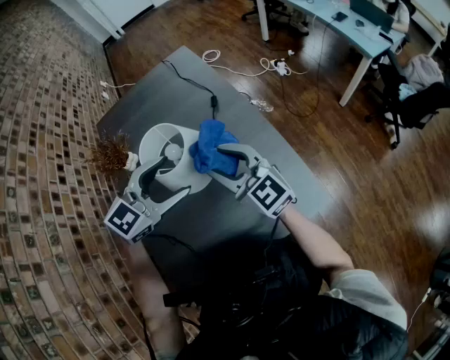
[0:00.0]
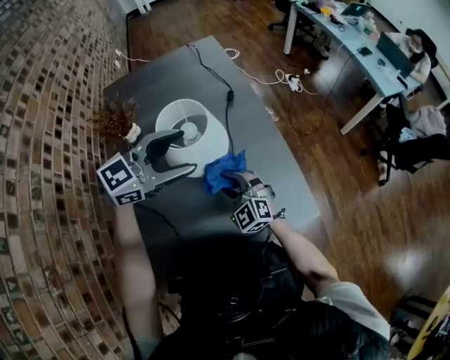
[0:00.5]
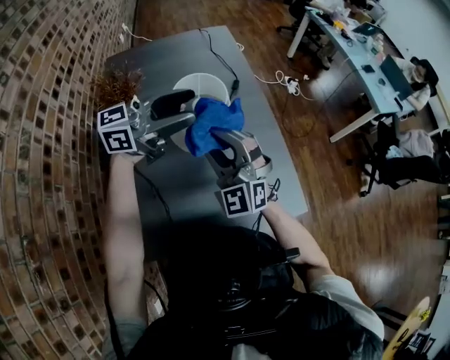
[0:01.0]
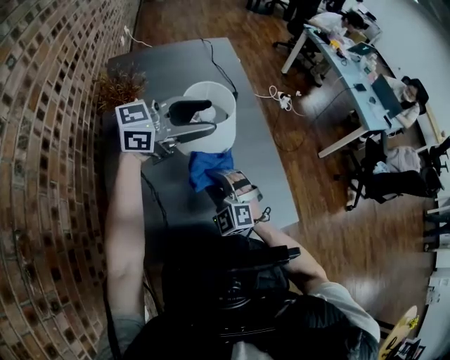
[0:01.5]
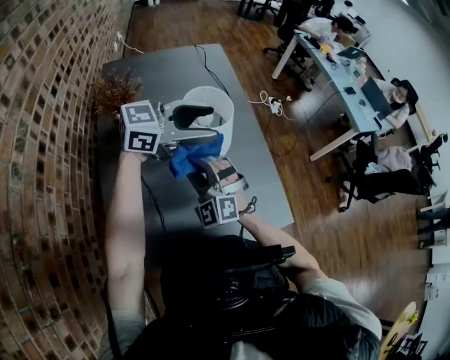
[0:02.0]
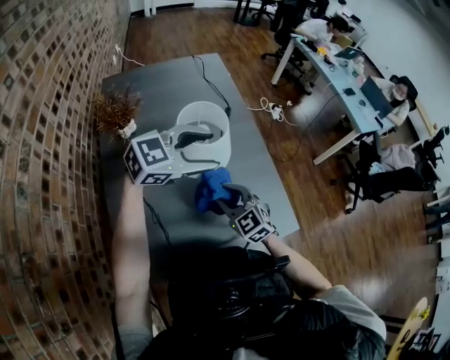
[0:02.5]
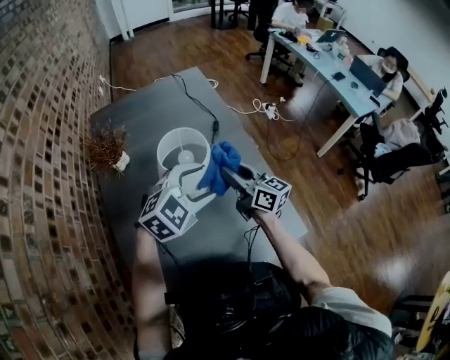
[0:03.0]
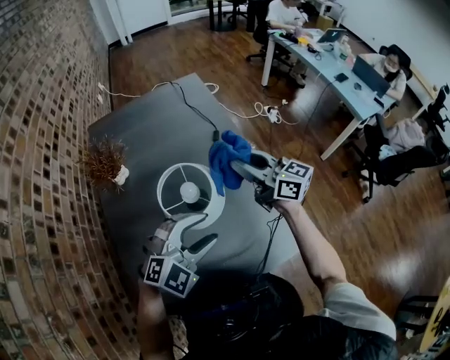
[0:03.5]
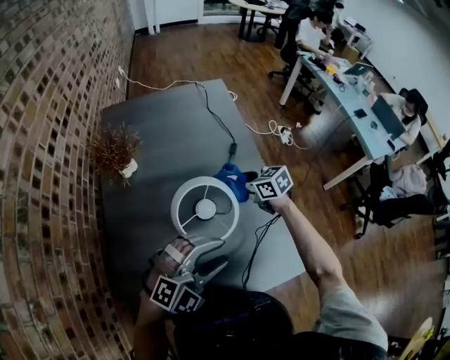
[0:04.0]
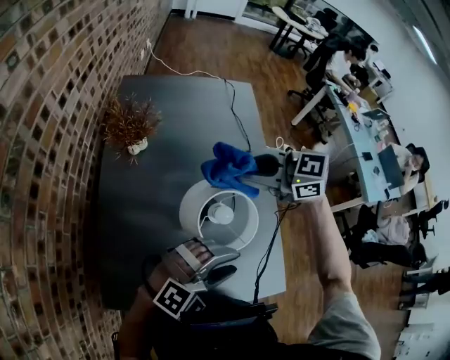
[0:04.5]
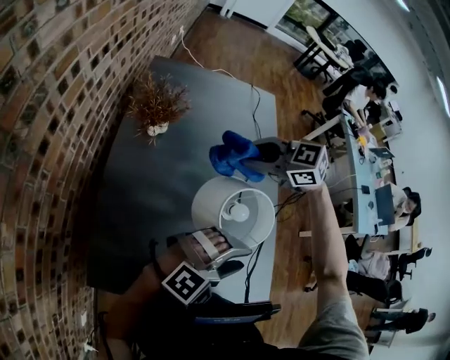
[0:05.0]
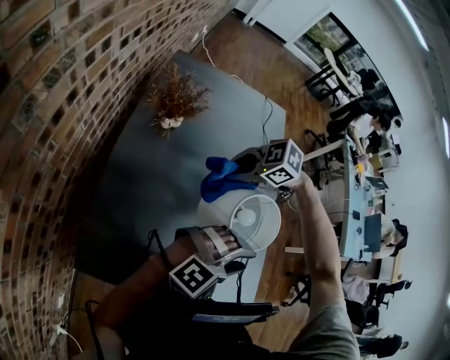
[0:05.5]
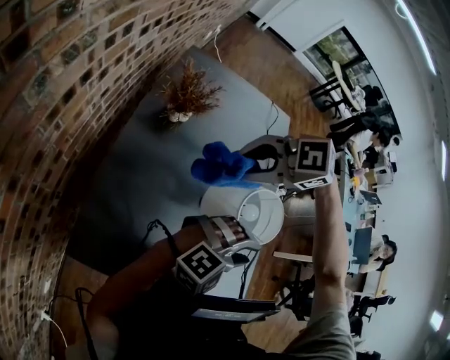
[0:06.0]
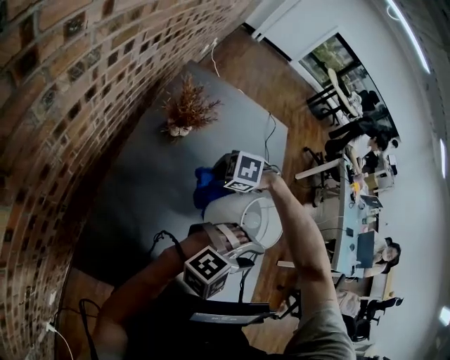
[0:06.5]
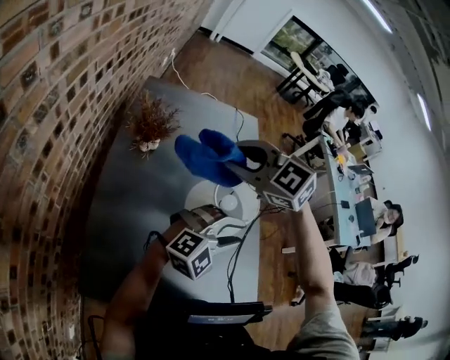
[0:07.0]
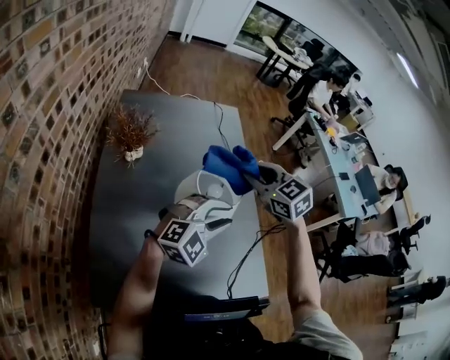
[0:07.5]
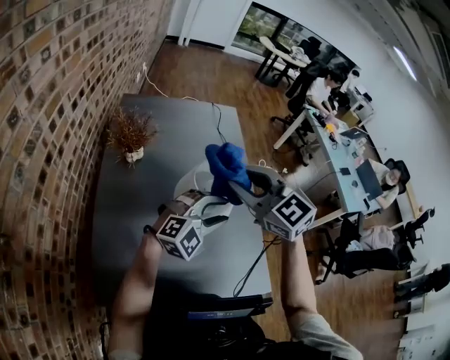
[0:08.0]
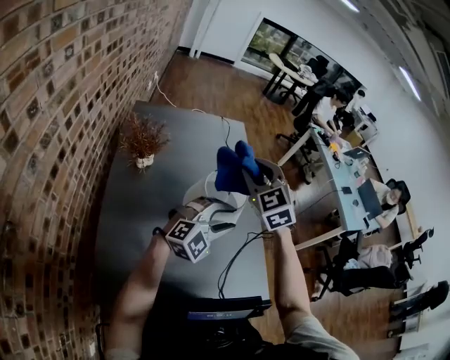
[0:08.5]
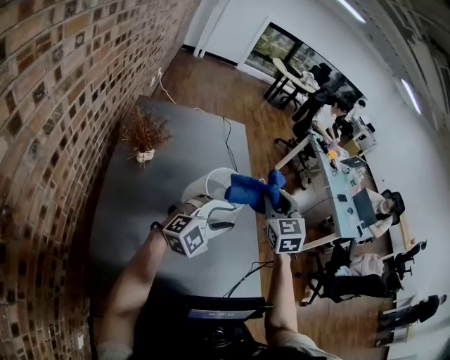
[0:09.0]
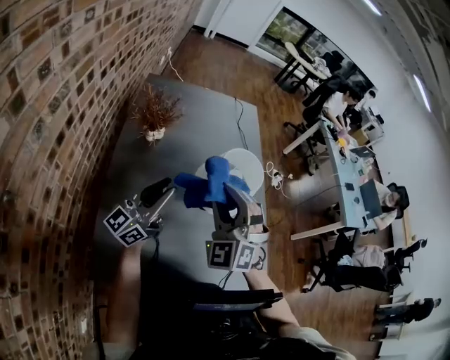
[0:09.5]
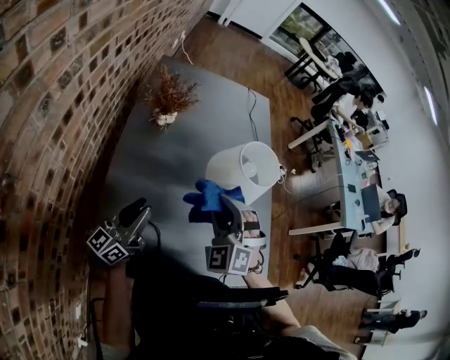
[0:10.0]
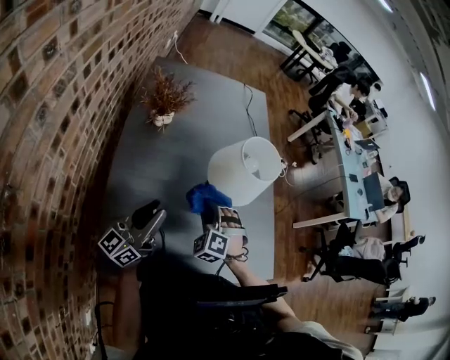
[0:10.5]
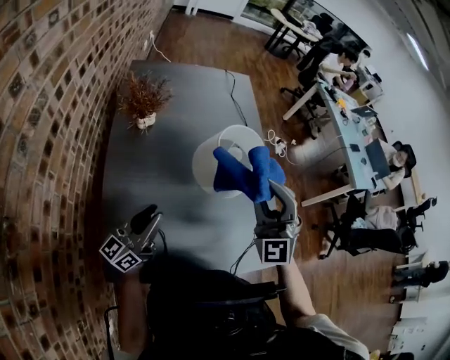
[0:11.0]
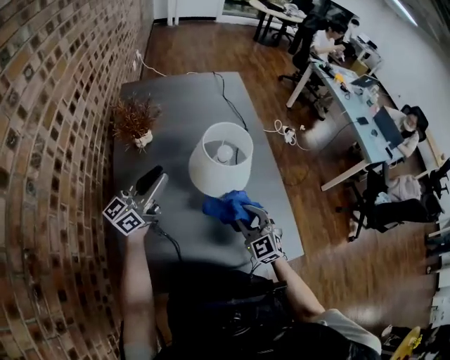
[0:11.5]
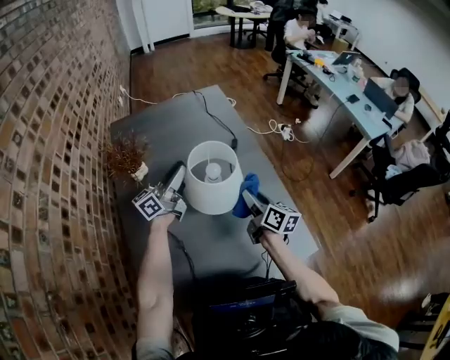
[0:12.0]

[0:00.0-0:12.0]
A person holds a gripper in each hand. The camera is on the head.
0:00.0 to 0:02.0: The right gripper swings up and down, about 15 cm each way, with 3 reversals, and rolls counterclockwise, seen from behind, by about 50 degrees. Meanwhile the left gripper travels upward by roughly 5 cm, and changes its angle by approximately 30 degrees.
0:02.0 to 0:04.0: The left gripper shifts by about 15 cm, and swivels roughly 60 degrees. Meanwhile the right gripper moves up and down over approximately 15 cm, changing direction 2 times, and rolls clockwise, seen from behind, by about 70 degrees.
0:04.0 to 0:06.0: The right gripper goes up and down, some 20 cm each way, reversing 2 times, and changes its angle by some 80 degrees.
0:06.0 to 0:08.0: The right gripper moves up and down over roughly 25 cm, changing direction 3 times, and tips its fingers upward by about 30 degrees. Meanwhile the left gripper moves about 5 cm.
0:08.0 to 0:10.0: The left gripper travels to the left and backward by some 30 cm, and points its fingers about 40 degrees further upward. Meanwhile the right gripper travels downward, backward and to the left by about 20 cm, and changes its angle by roughly 50 degrees.
0:10.0 to 0:12.0: The right gripper moves up and down over approximately 25 cm, changing direction 3 times, and rotates around the line of its fingers by about 110 degrees, clockwise from behind. The left gripper is displaced forward and to the right by some 30 cm, and rotates about 30 degrees.

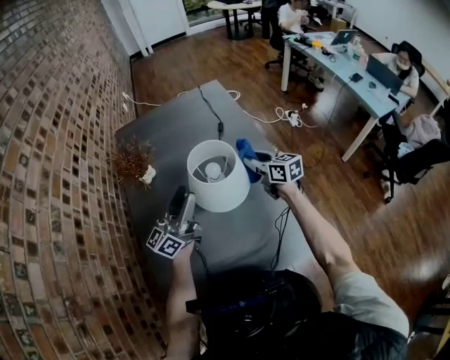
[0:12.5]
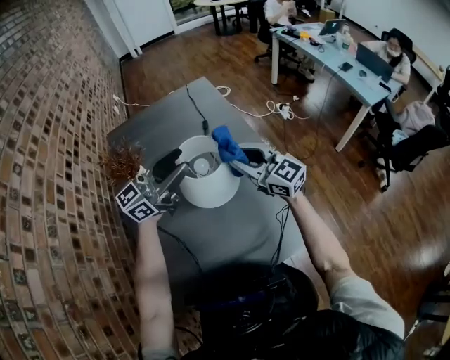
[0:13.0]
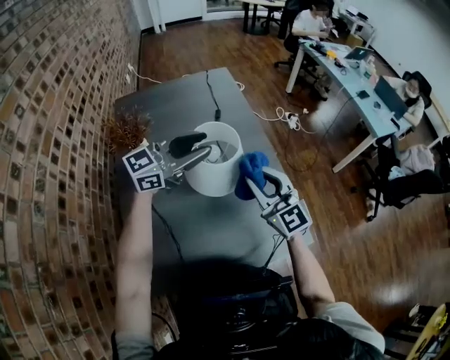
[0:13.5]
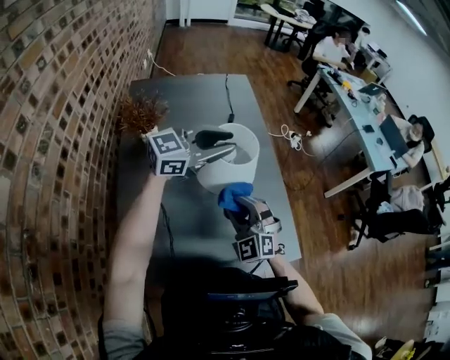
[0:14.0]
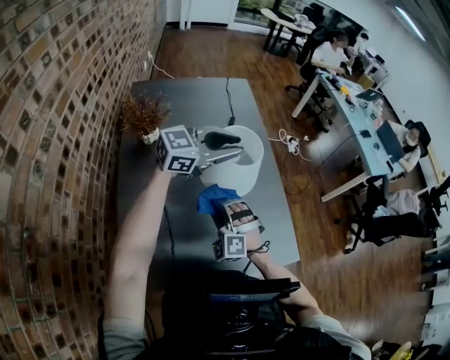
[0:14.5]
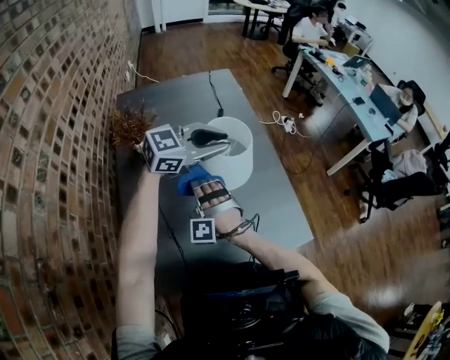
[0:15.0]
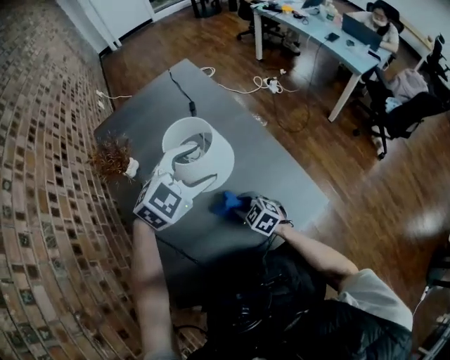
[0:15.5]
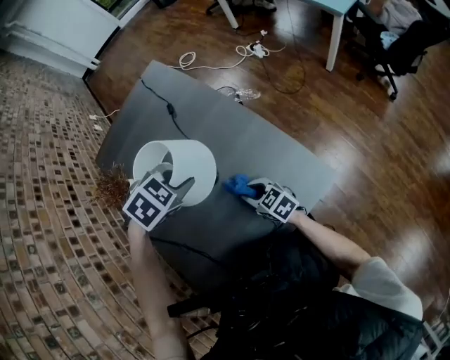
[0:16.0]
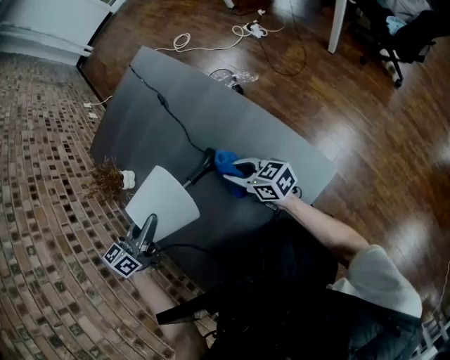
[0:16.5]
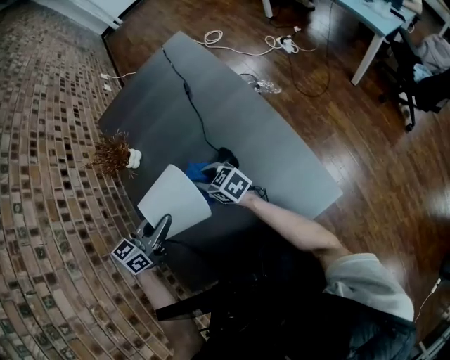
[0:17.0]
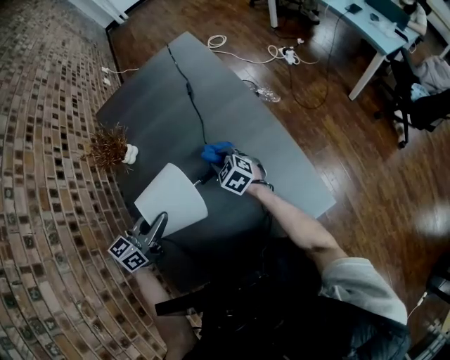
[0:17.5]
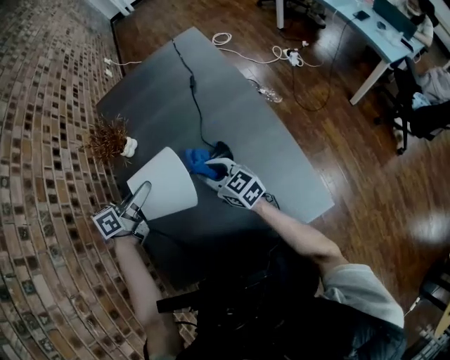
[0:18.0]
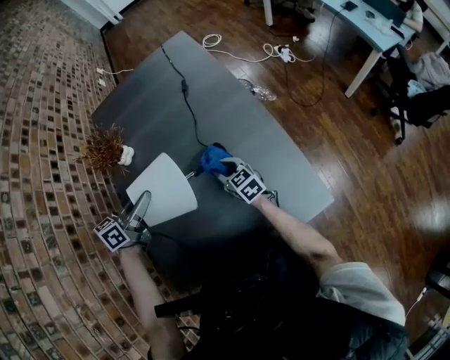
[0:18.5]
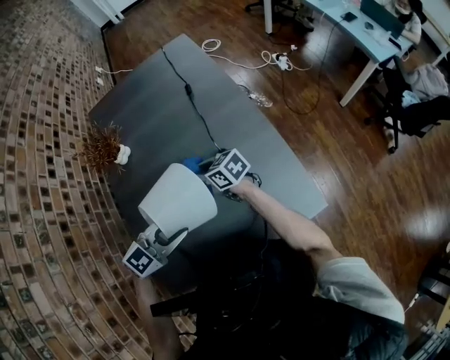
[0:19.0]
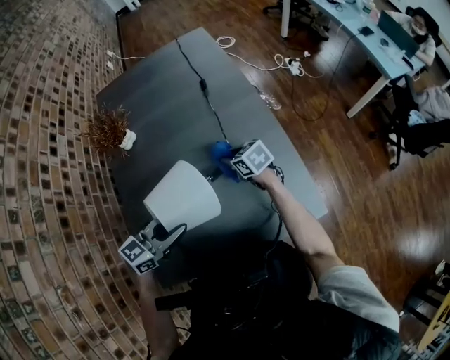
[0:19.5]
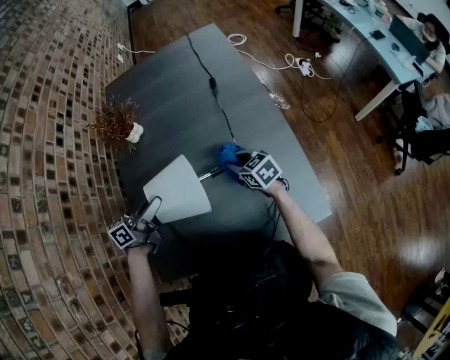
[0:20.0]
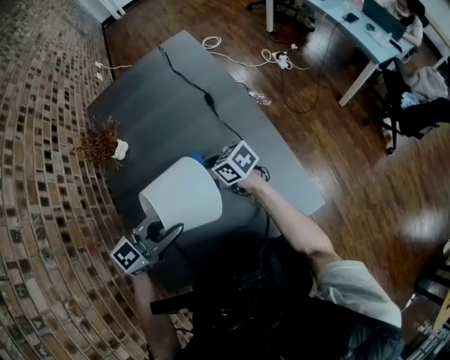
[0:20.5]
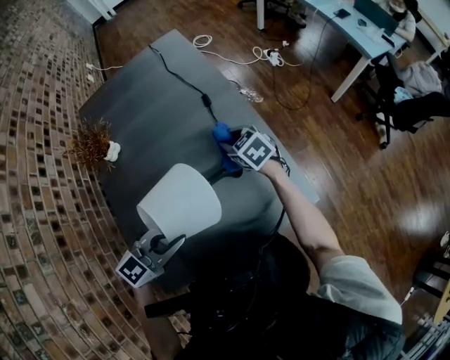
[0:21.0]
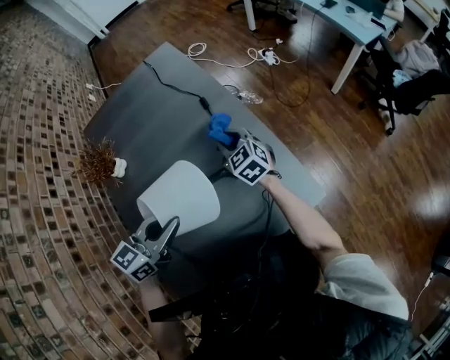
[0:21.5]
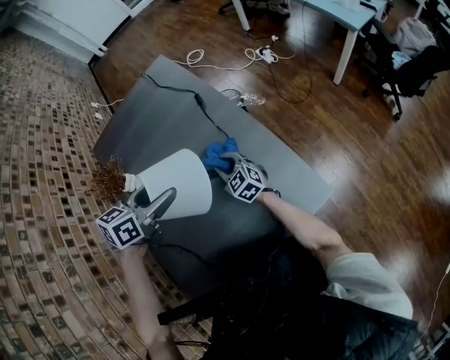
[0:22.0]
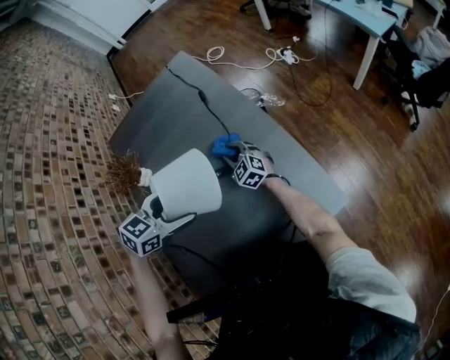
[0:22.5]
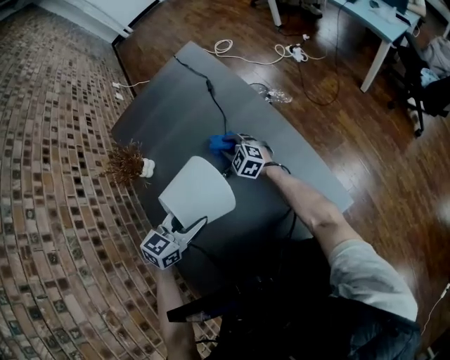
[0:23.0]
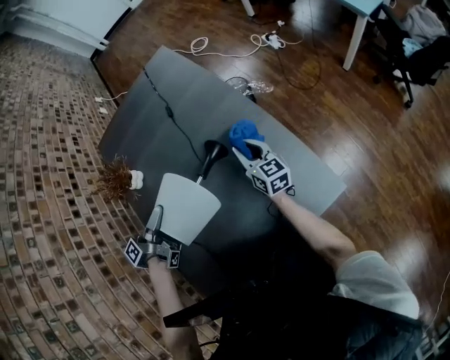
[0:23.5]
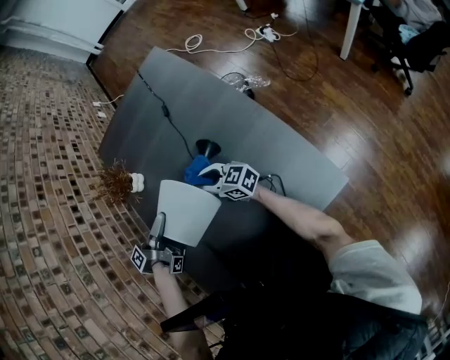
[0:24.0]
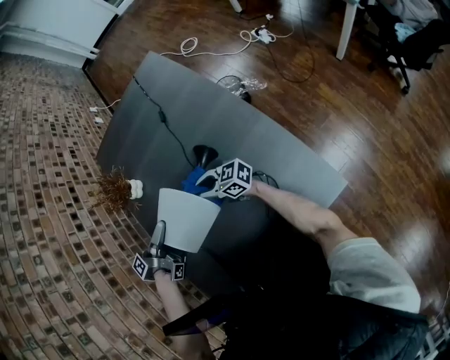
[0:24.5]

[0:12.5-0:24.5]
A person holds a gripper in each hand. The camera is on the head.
0:12.5 to 0:14.5: The left gripper shifts by some 10 cm, and swivels approximately 50 degrees; the right gripper travels upward and back again, approximately 10 cm each way, and rolls counterclockwise, seen from behind, by roughly 90 degrees.
0:14.5 to 0:16.5: The left gripper is displaced downward by some 10 cm, turns by some 40 degrees, and opens, then closes once more; the right gripper ends up roughly 20 cm from where it was, and rotates around the line of its fingers by about 100 degrees, clockwise from behind.
0:16.5 to 0:18.5: The right gripper goes left and right, approximately 15 cm each way, reversing 3 times, and changes its angle by about 30 degrees. Meanwhile the left gripper shifts by about 5 cm.
0:18.5 to 0:20.5: The right gripper moves up and down over roughly 5 cm, changing direction 2 times, and turns by approximately 30 degrees; the left gripper ends up roughly 15 cm from where it was, and swivels approximately 40 degrees.
0:20.5 to 0:22.5: The left gripper ends up some 10 cm from where it was, swivels approximately 30 degrees, and opens its fingers. Meanwhile the right gripper shifts by roughly 15 cm, and swivels about 50 degrees.
0:22.5 to 0:24.5: The right gripper moves some 15 cm, and turns by roughly 60 degrees, while the left gripper changes place by roughly 10 cm, rolls counterclockwise, seen from behind, by about 90 degrees, and closes.

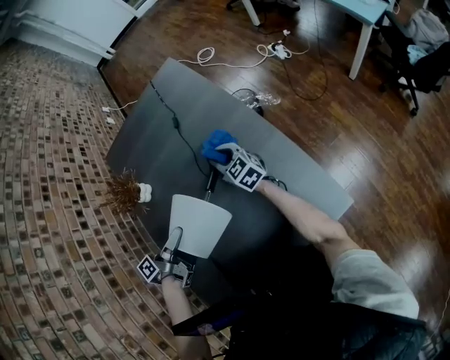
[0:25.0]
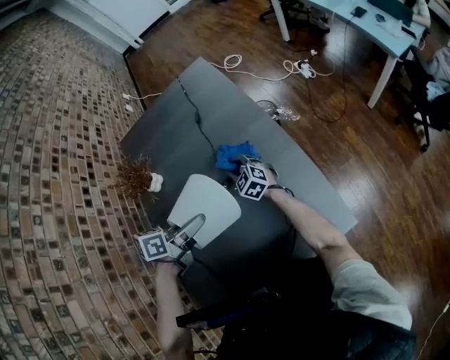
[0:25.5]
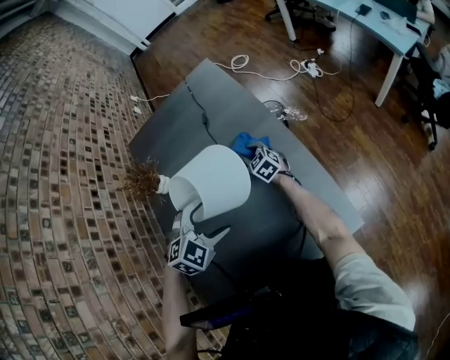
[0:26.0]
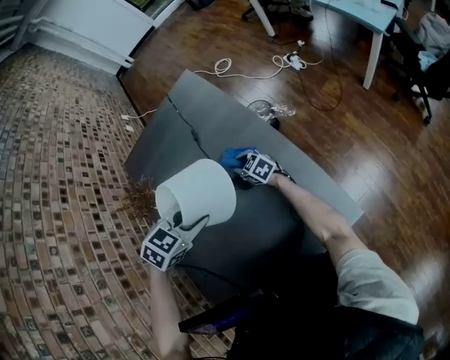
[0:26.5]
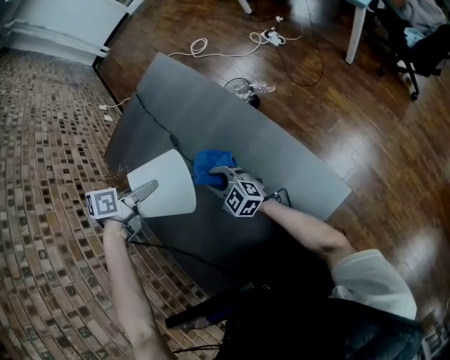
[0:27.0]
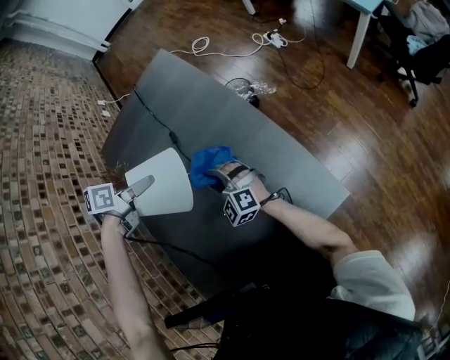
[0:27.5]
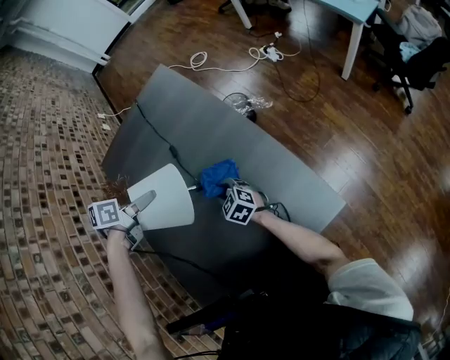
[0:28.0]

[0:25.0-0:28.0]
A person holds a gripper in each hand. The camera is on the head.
0:25.0 to 0:26.5: The right gripper moves downward, roughly 5 cm. The left gripper is displaced to the right and upward by some 10 cm, twists some 100 degrees clockwise, seen from behind, and opens, then closes once more.
0:26.5 to 0:28.0: The right gripper goes roughly 15 cm backward; the left gripper is displaced to the left and forward by some 10 cm, and rolls counterclockwise, seen from behind, by roughly 50 degrees.
